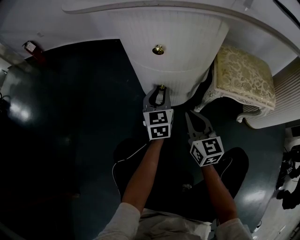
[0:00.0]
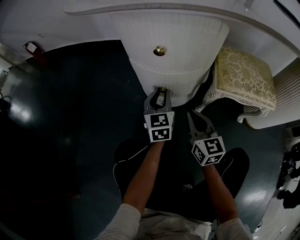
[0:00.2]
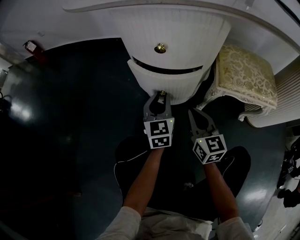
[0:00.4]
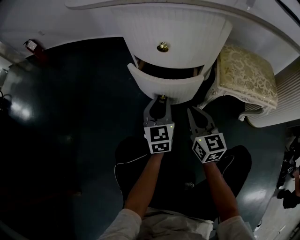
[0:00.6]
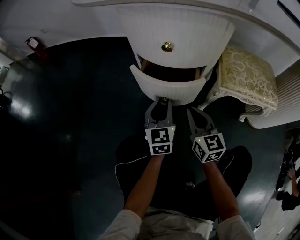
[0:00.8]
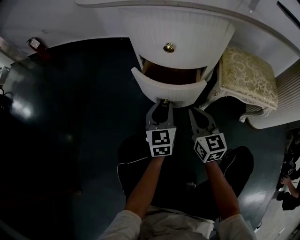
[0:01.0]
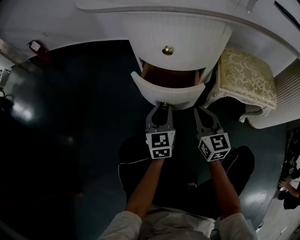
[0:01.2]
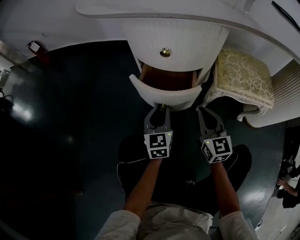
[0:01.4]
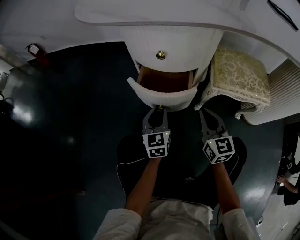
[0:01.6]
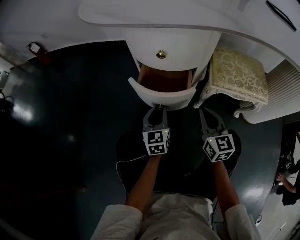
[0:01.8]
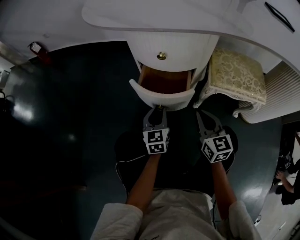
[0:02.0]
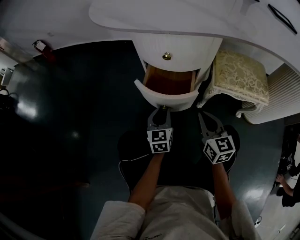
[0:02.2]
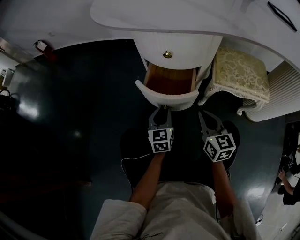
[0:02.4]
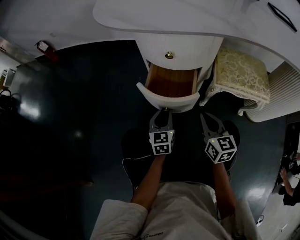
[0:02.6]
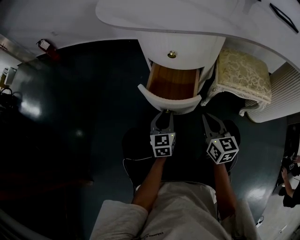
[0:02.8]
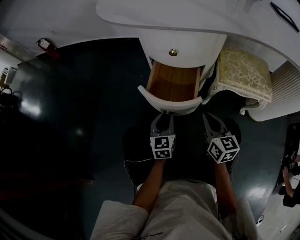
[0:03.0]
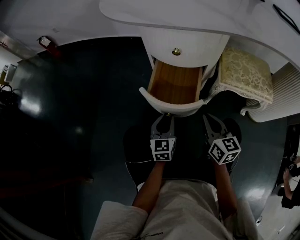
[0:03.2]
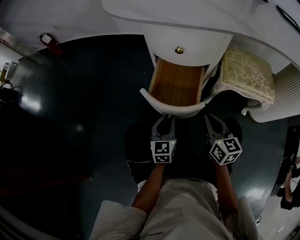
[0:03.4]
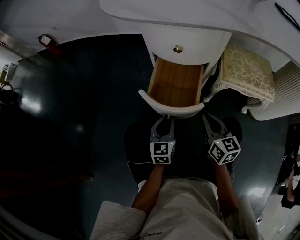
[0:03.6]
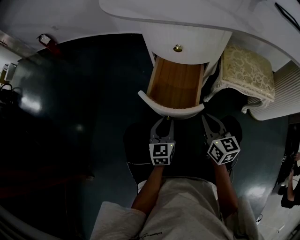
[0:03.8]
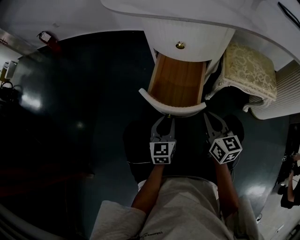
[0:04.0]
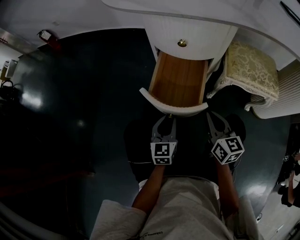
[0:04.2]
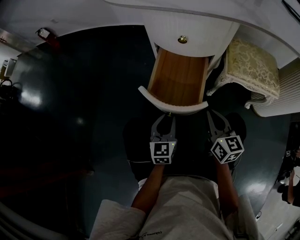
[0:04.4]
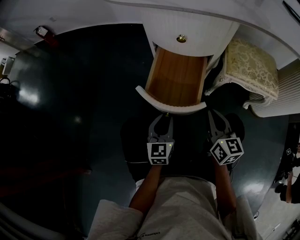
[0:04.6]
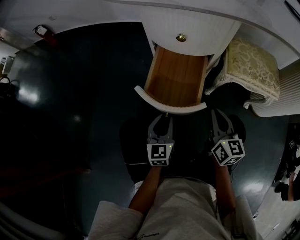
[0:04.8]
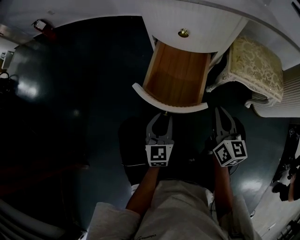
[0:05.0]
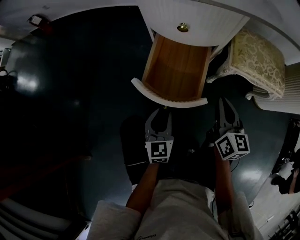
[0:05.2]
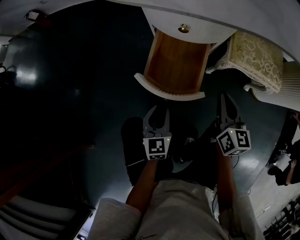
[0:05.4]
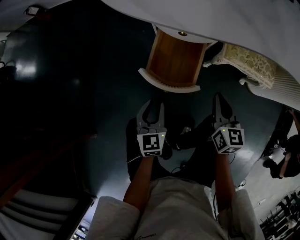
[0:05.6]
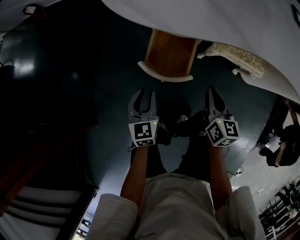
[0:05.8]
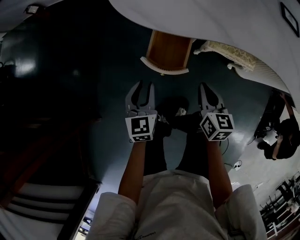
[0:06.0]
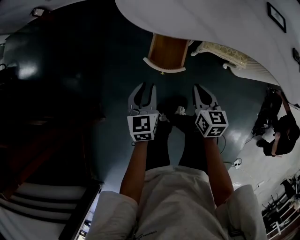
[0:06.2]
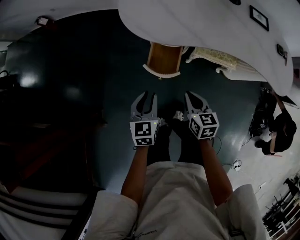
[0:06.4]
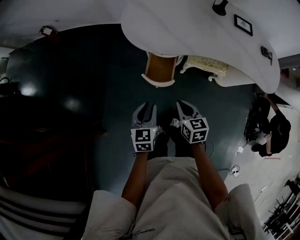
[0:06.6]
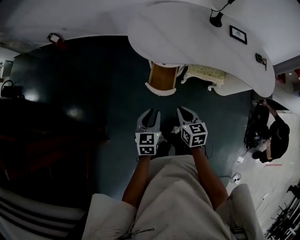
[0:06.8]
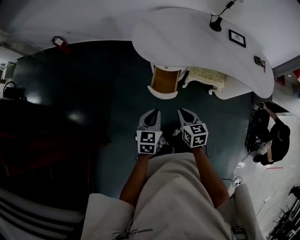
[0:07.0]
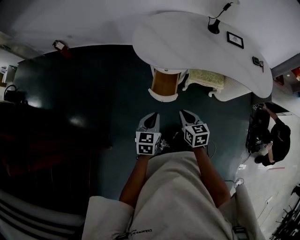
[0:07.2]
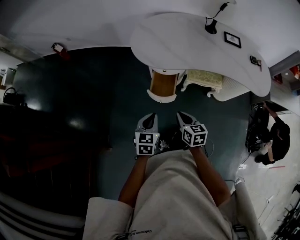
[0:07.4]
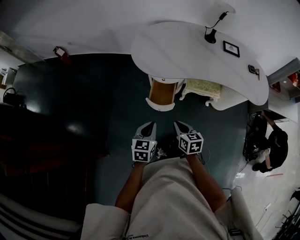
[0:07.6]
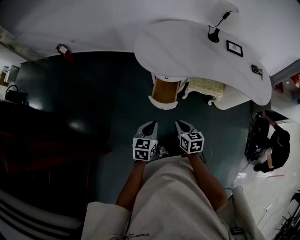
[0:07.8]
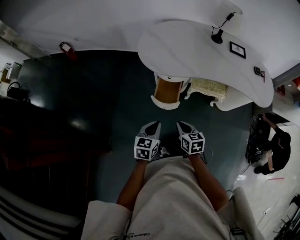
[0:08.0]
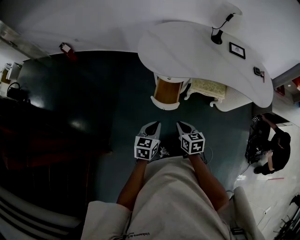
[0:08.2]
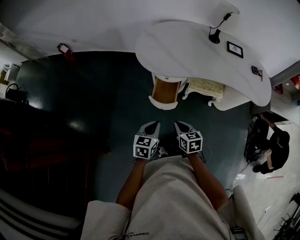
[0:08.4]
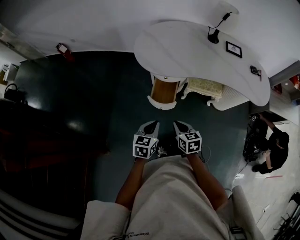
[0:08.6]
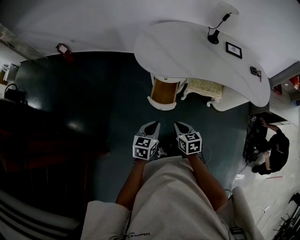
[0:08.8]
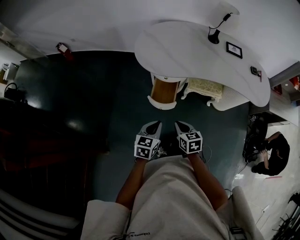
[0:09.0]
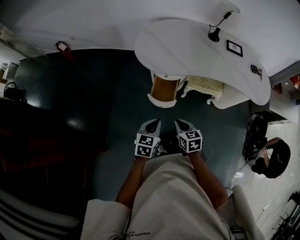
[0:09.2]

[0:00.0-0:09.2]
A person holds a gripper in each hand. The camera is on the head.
0:00.0 to 0:01.6: The left gripper moves backward, roughly 10 cm, while the right gripper changes place by approximately 5 cm.
0:01.6 to 0:03.0: The right gripper changes place by roughly 5 cm. The left gripper heads backward, covering some 5 cm.
0:03.0 to 0:04.6: The grippers stay close to where they were, moving slightly.
0:04.6 to 0:06.2: The grippers both shift upward by approximately 35 cm. The right gripper swivels some 20 degrees.
0:06.2 to 0:07.6: The left gripper moves upward and backward, approximately 20 cm, and closes up. The right gripper moves upward, backward and to the left, approximately 20 cm.
0:07.6 to 0:09.2: The grippers move only a little.

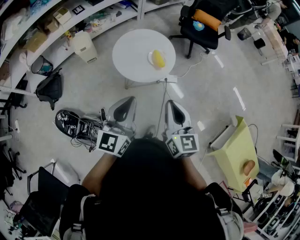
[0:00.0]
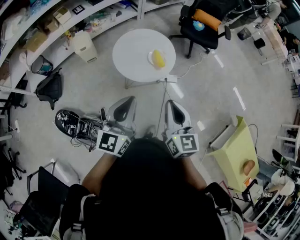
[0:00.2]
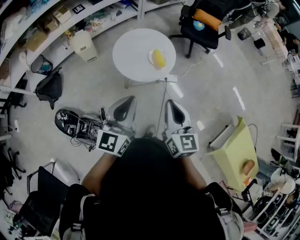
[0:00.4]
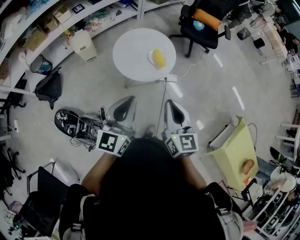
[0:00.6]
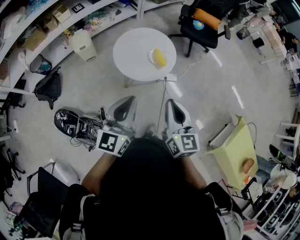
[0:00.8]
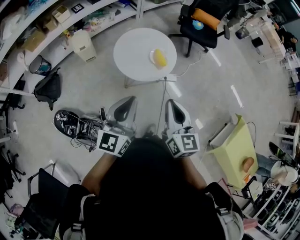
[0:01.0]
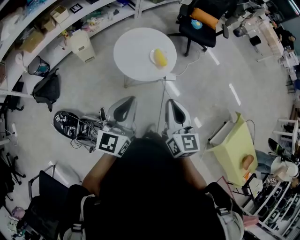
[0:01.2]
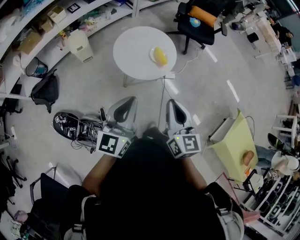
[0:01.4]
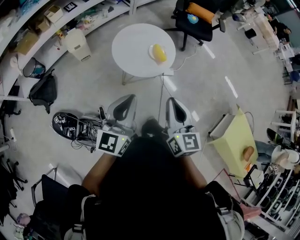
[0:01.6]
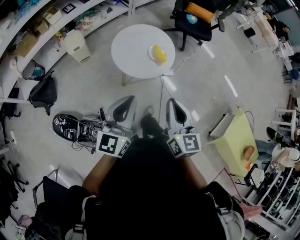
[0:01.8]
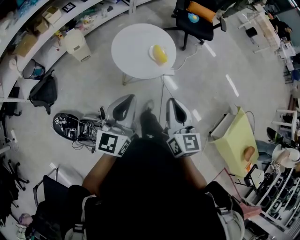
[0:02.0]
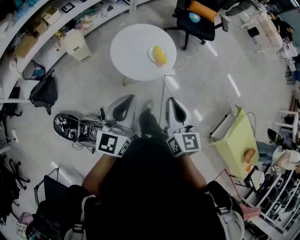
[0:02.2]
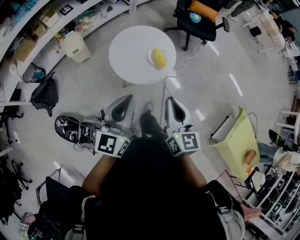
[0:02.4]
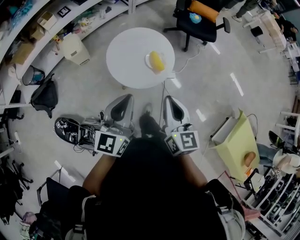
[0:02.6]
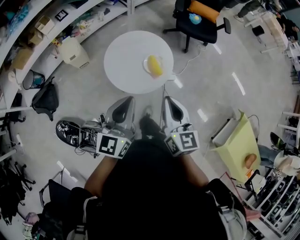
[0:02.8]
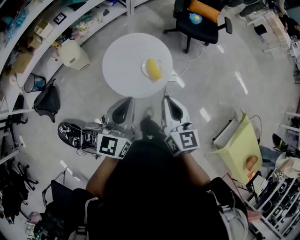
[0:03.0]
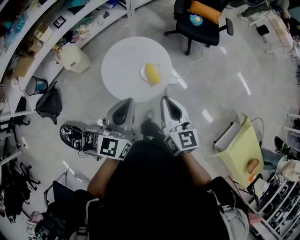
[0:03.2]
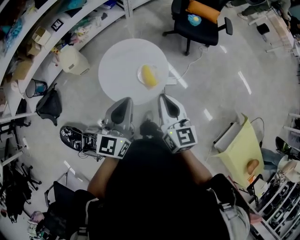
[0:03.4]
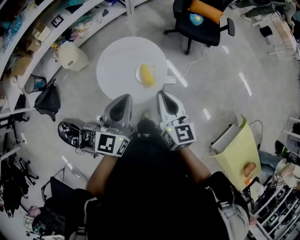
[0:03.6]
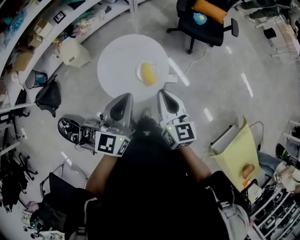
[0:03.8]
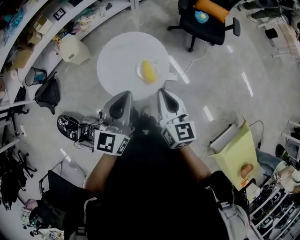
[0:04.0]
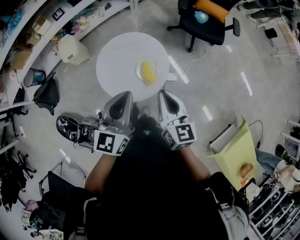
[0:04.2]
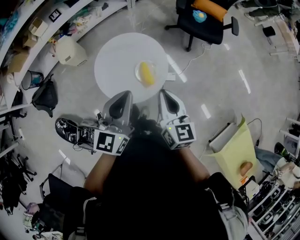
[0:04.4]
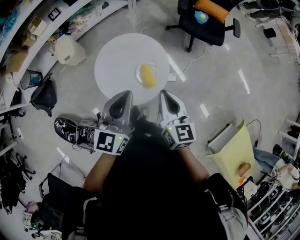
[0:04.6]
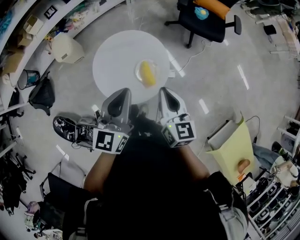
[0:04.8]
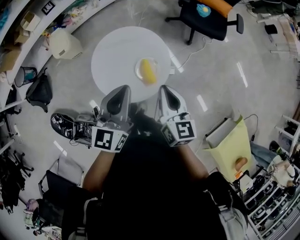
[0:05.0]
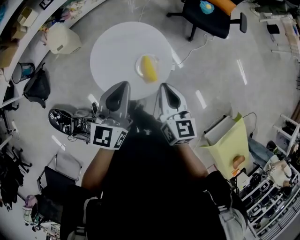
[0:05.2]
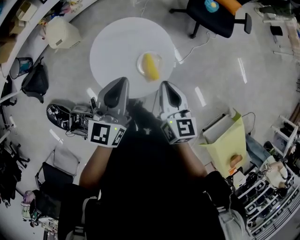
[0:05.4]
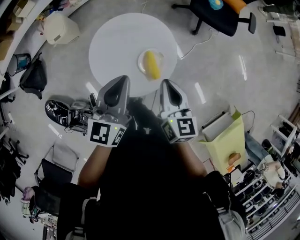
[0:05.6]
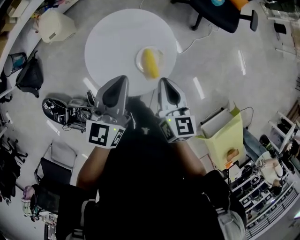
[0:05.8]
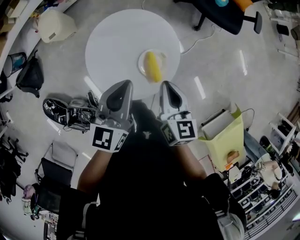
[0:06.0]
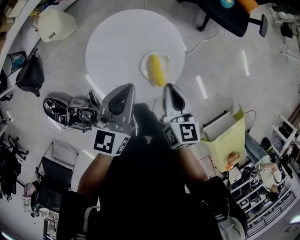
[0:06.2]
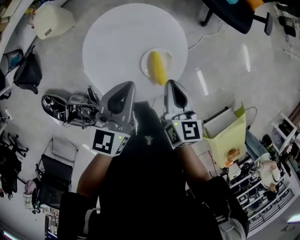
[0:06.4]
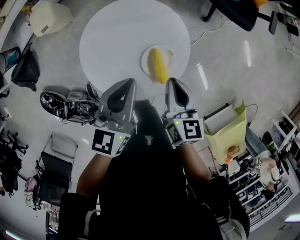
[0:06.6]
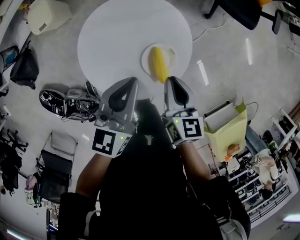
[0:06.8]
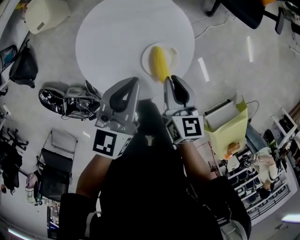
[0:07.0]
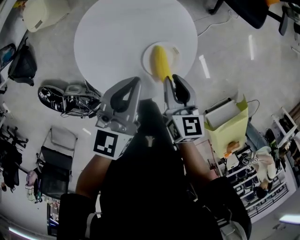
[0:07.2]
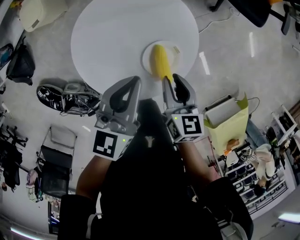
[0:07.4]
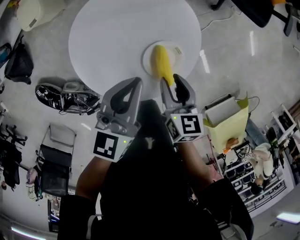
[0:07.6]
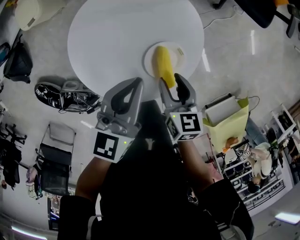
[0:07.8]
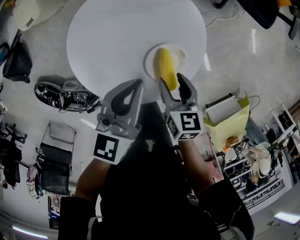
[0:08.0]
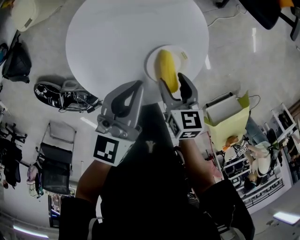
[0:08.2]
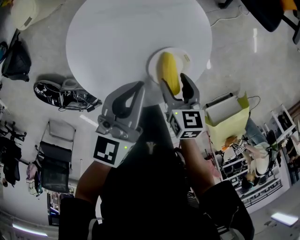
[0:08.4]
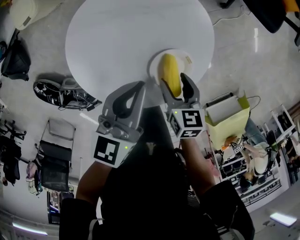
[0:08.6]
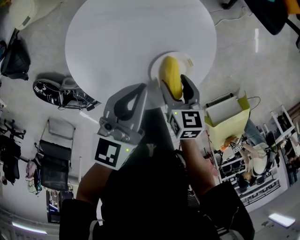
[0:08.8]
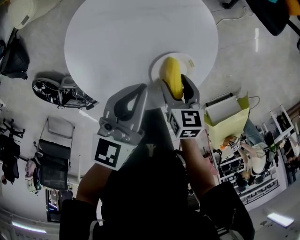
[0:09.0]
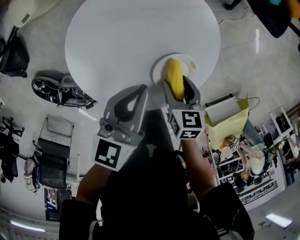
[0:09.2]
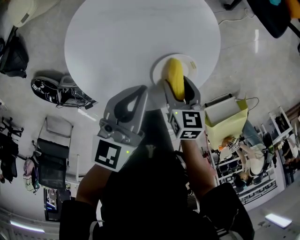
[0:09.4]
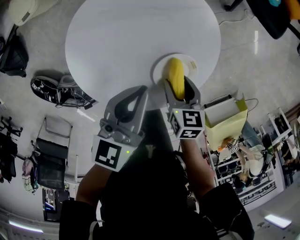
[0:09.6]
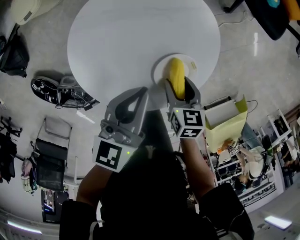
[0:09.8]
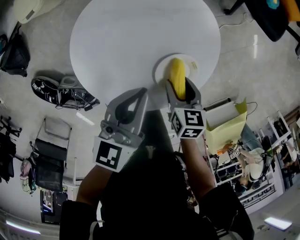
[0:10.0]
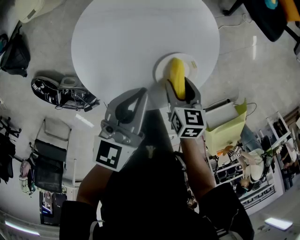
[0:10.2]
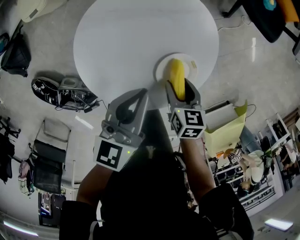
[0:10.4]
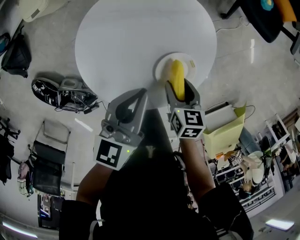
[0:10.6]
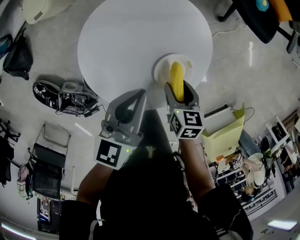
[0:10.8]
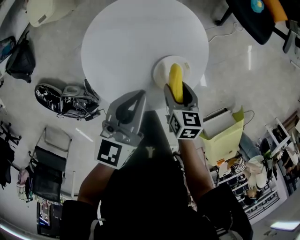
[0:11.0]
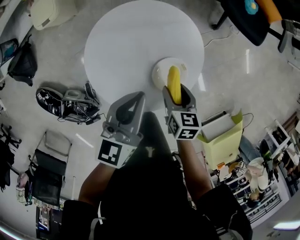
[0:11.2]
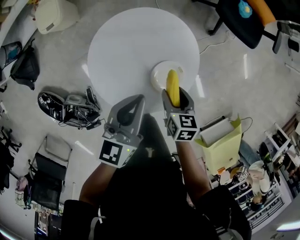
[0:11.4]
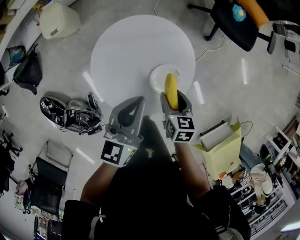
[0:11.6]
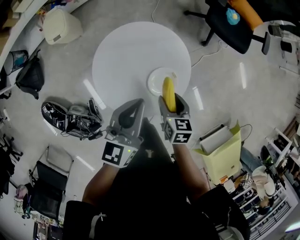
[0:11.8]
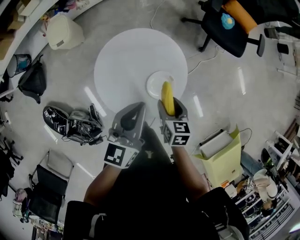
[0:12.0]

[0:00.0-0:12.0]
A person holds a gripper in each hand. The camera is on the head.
0:00.0 to 0:01.6: Both grippers move to the left, about 5 cm.
0:01.6 to 0:03.0: Both grippers travel together forward, some 20 cm.
0:03.0 to 0:04.4: The right gripper travels forward by roughly 10 cm. Meanwhile the left gripper is displaced forward and to the right by about 10 cm.
0:04.4 to 0:06.0: The grippers both shift downward and forward by some 15 cm.
0:06.0 to 0:07.6: The grippers both shift downward by approximately 15 cm. The right gripper opens up.
0:07.6 to 0:09.0: The right gripper shifts approximately 10 cm downward, and opens up; the left gripper is displaced downward by about 5 cm.
0:09.0 to 0:10.4: There are only small adjustments of the grippers.
0:10.4 to 0:12.0: The grippers both shift upward by approximately 15 cm.

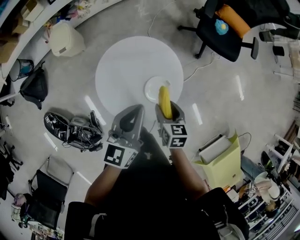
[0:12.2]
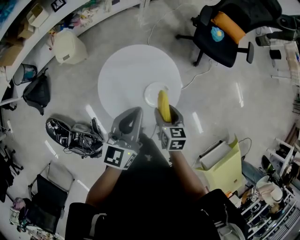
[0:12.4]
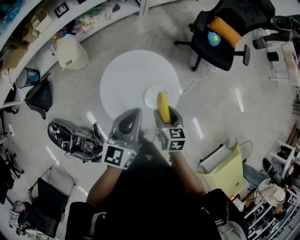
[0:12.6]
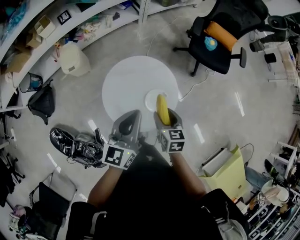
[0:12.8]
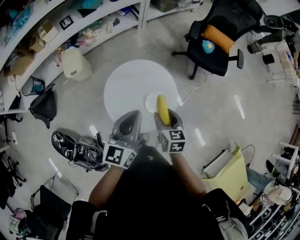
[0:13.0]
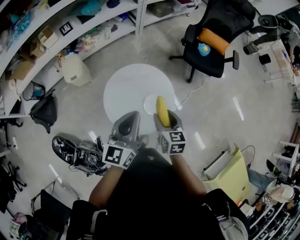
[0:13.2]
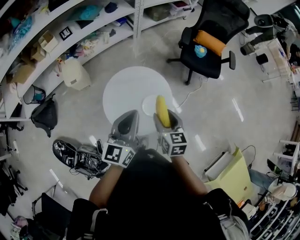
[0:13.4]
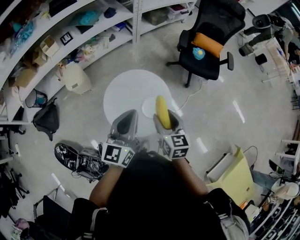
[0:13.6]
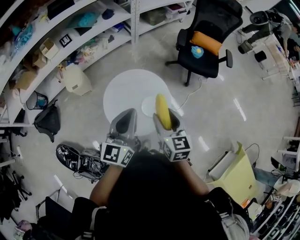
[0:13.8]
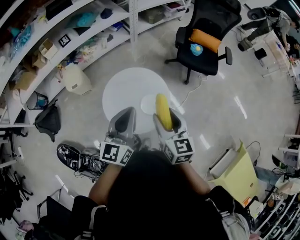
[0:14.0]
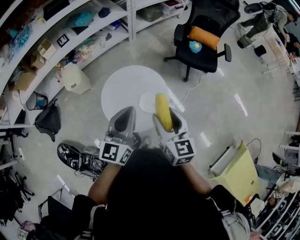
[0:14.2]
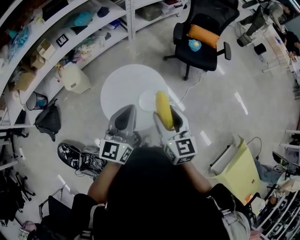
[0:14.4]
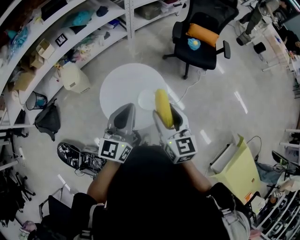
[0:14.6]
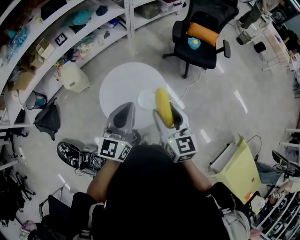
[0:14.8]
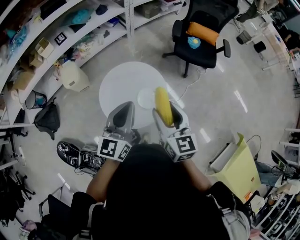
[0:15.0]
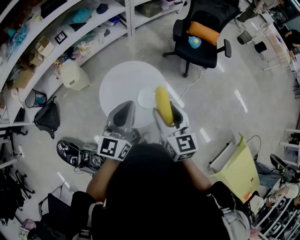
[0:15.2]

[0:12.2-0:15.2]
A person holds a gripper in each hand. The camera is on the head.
0:12.2 to 0:13.8: The right gripper shifts some 20 cm upward, and changes its angle by some 30 degrees. The left gripper heads upward and backward, covering approximately 15 cm.
0:13.8 to 0:15.2: The right gripper ends up about 5 cm from where it was.
